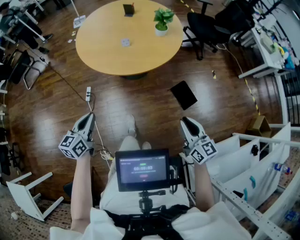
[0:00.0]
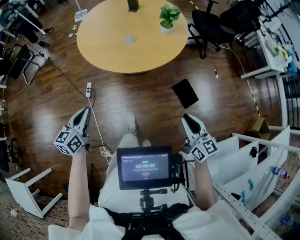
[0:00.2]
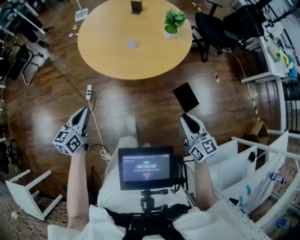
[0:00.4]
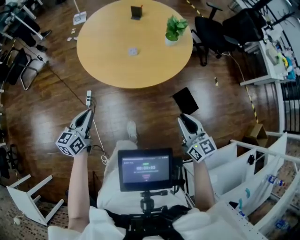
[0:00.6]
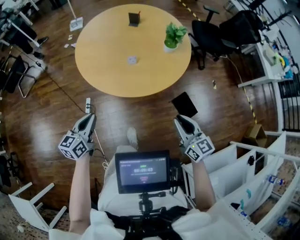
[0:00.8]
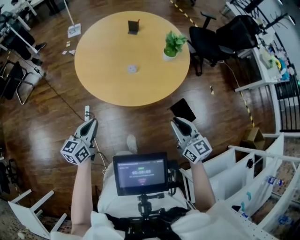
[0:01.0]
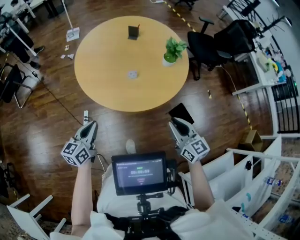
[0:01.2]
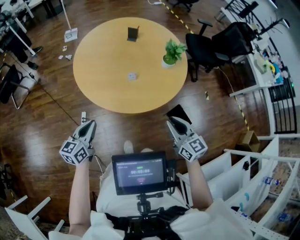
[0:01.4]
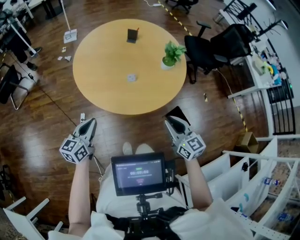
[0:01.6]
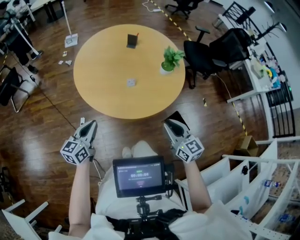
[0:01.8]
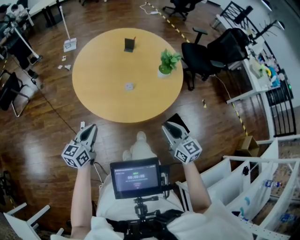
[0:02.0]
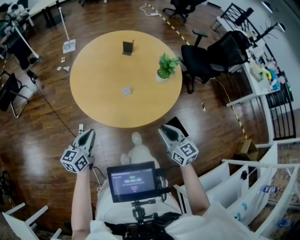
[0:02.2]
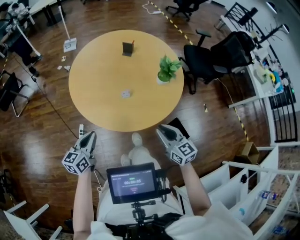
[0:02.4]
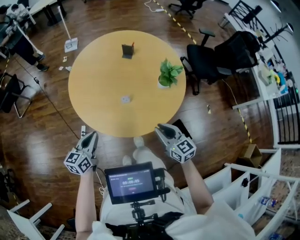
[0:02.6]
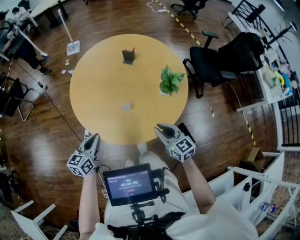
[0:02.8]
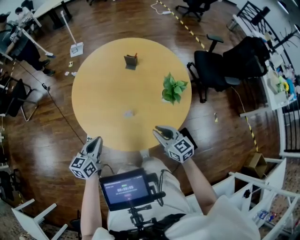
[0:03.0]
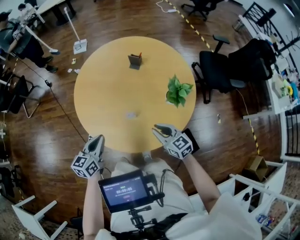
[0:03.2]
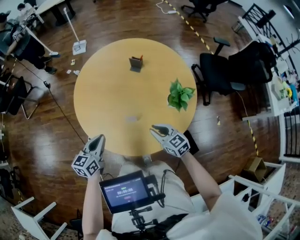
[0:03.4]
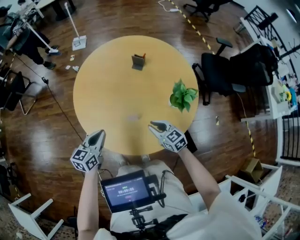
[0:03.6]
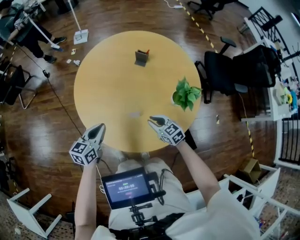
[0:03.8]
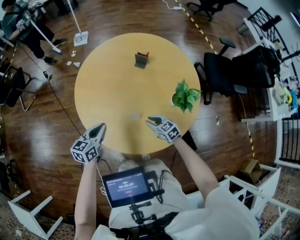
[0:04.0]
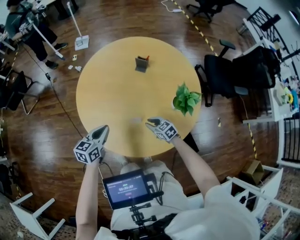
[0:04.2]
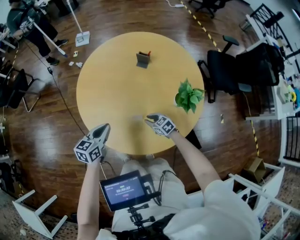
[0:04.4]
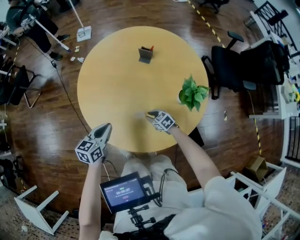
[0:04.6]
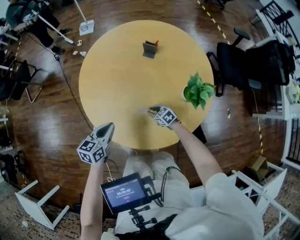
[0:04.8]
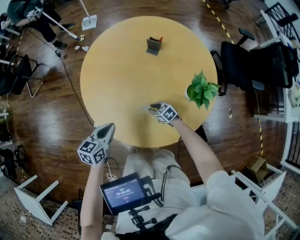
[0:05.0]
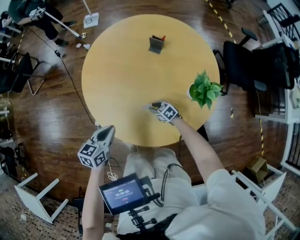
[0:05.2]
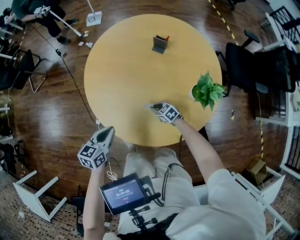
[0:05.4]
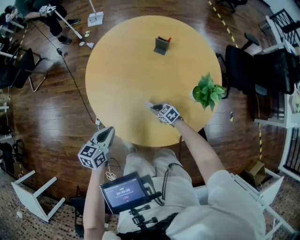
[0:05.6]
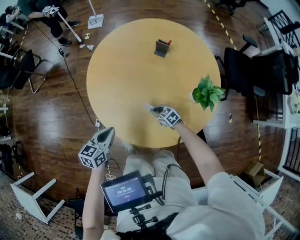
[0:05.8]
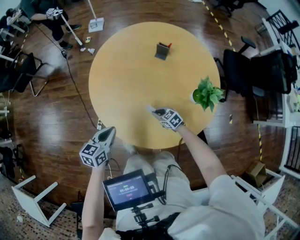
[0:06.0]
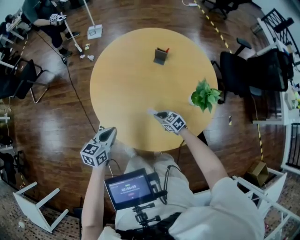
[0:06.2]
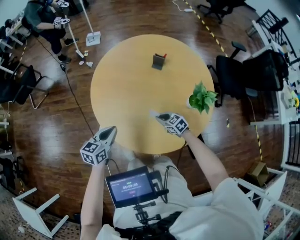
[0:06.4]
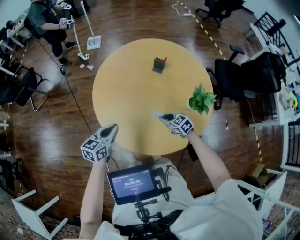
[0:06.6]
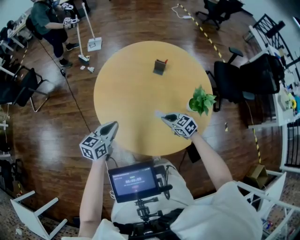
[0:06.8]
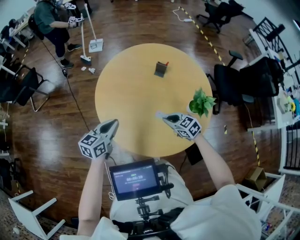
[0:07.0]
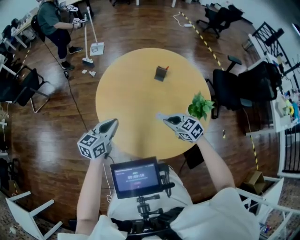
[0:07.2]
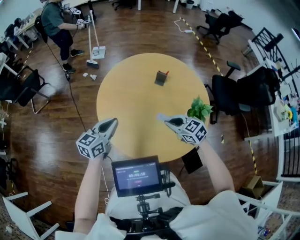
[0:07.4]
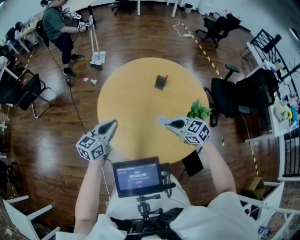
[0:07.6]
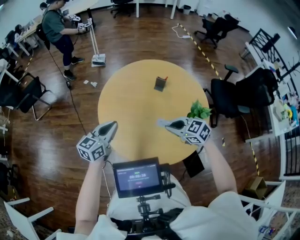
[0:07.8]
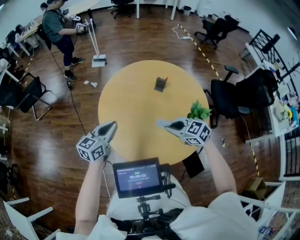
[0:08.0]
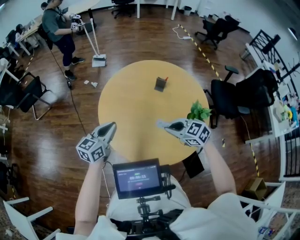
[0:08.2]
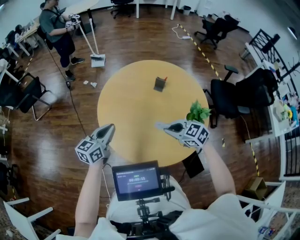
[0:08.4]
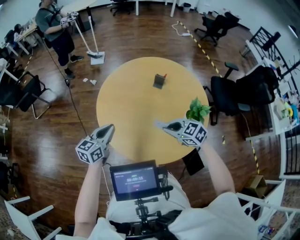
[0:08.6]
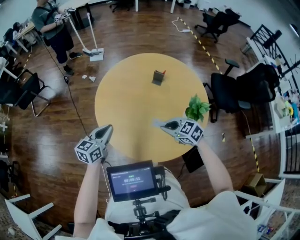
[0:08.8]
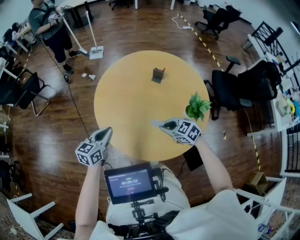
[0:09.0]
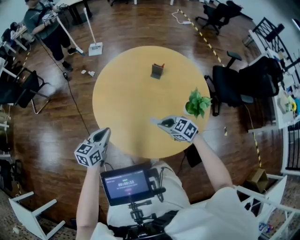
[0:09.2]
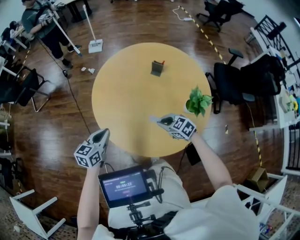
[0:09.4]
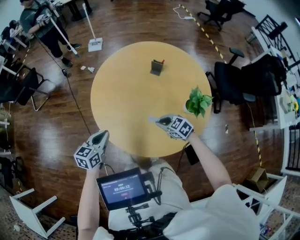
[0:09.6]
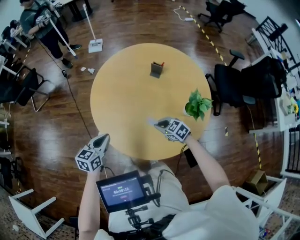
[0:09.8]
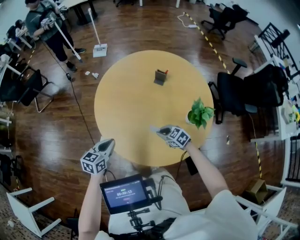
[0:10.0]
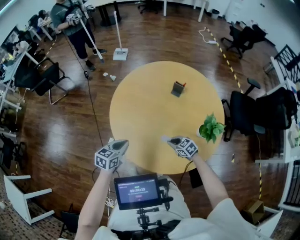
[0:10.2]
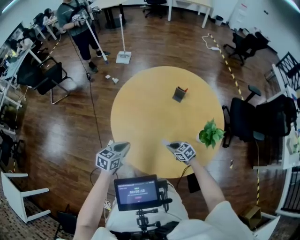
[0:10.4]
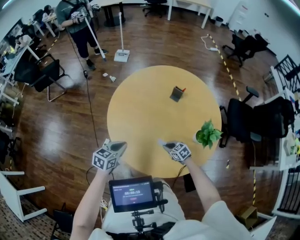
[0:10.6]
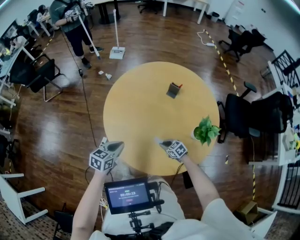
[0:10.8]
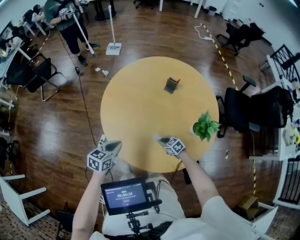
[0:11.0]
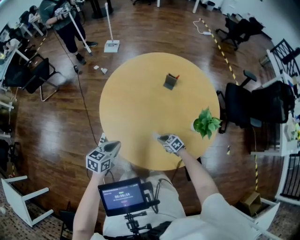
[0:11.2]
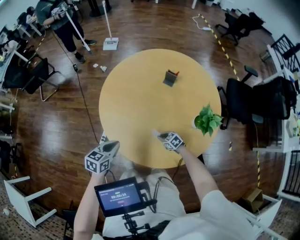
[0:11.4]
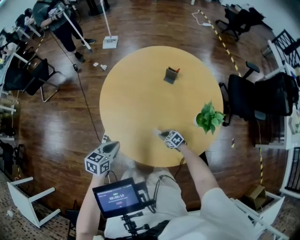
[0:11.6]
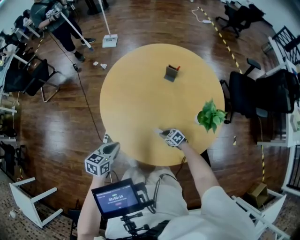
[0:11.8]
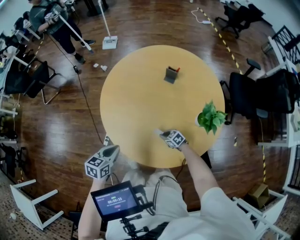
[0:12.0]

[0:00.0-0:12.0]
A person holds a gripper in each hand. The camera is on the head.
0:00.0 to 0:01.6: The left gripper goes approximately 25 cm forward. Meanwhile the right gripper is displaced forward and to the left by some 30 cm.
0:01.6 to 0:03.0: The right gripper shifts some 20 cm forward; the left gripper goes roughly 20 cm forward and to the right.
0:03.0 to 0:04.4: The left gripper goes about 10 cm forward. Meanwhile the right gripper goes roughly 25 cm downward and forward, and changes its angle by some 30 degrees.
0:04.4 to 0:06.0: Both grippers travel together to the left, roughly 5 cm.
0:06.0 to 0:07.6: The right gripper heads upward, covering approximately 35 cm, while the left gripper goes about 15 cm upward and forward, and changes its angle by about 20 degrees.
0:07.6 to 0:09.0: The grippers both shift downward by about 5 cm.
0:09.0 to 0:10.4: The left gripper moves downward, roughly 5 cm, while the right gripper goes about 20 cm downward.
0:10.4 to 0:12.0: The right gripper heads downward, covering about 15 cm.

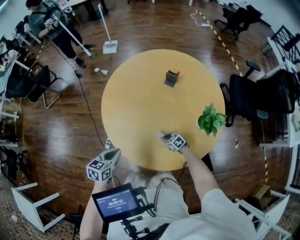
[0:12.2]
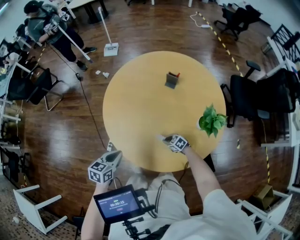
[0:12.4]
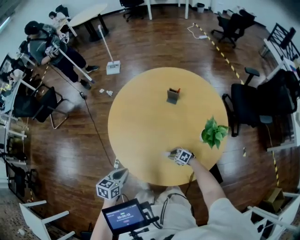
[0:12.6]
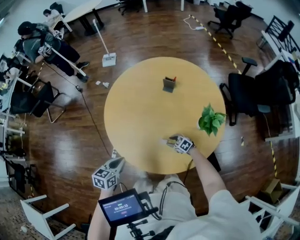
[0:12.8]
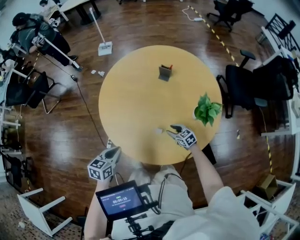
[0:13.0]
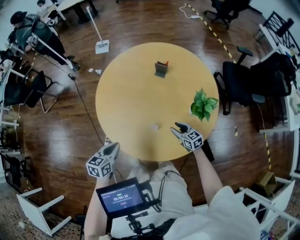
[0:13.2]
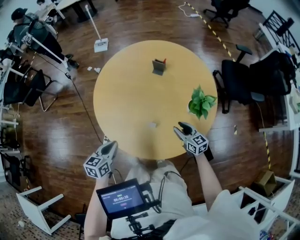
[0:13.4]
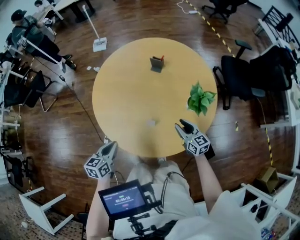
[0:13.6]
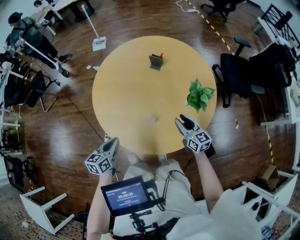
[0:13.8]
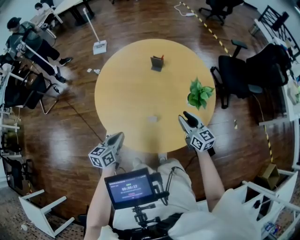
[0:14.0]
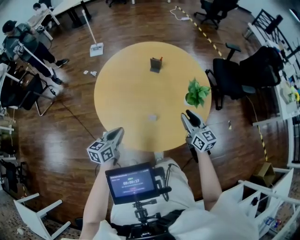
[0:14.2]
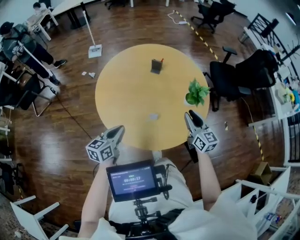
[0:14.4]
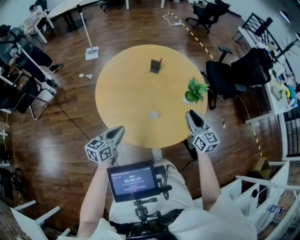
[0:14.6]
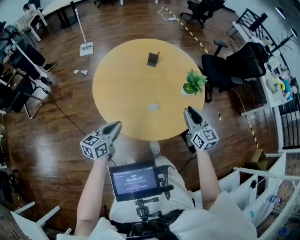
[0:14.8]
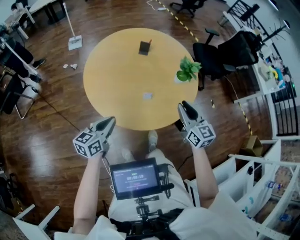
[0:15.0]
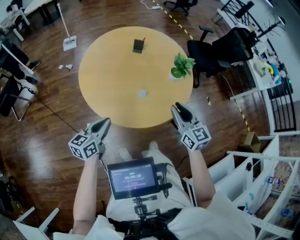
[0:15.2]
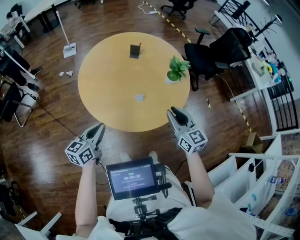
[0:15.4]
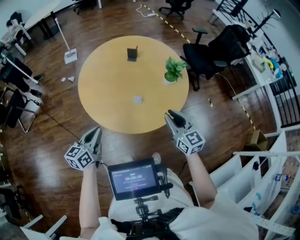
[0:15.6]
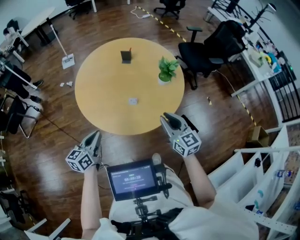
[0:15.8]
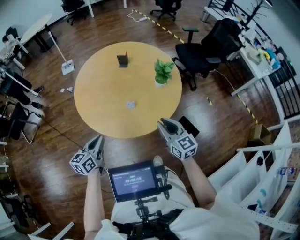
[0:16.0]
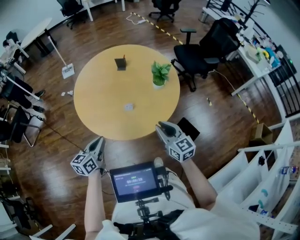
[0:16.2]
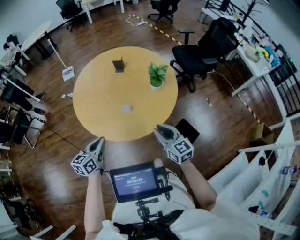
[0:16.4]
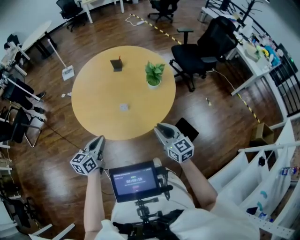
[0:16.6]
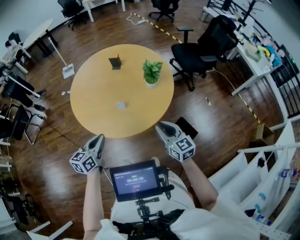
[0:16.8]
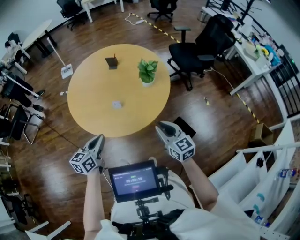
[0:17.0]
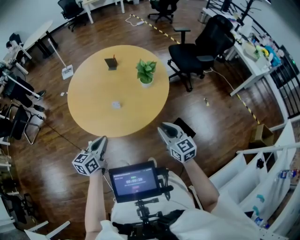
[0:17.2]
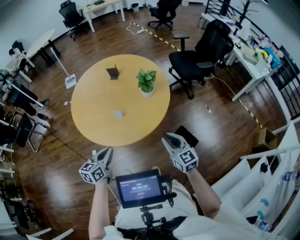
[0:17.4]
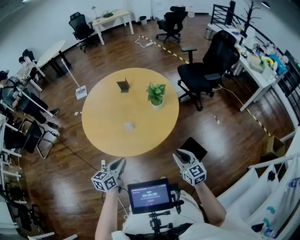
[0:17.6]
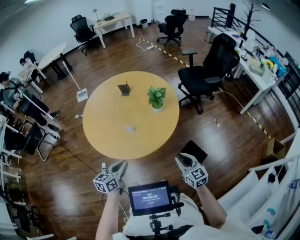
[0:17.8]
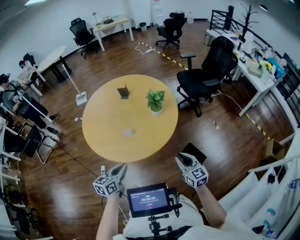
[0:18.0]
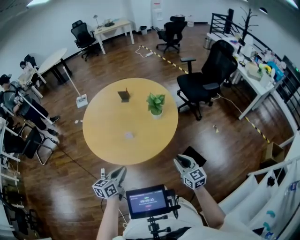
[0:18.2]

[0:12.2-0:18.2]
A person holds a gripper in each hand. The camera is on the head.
0:12.2 to 0:13.8: The left gripper shifts by some 5 cm, while the right gripper goes about 25 cm upward, angles its fingers upward, by roughly 30 degrees, and opens its fingers.
0:13.8 to 0:15.2: The right gripper shifts approximately 25 cm backward, upward and to the left, and changes its angle by some 20 degrees. Meanwhile the left gripper travels backward, upward and to the left by approximately 15 cm, and rotates roughly 30 degrees.
0:15.2 to 0:16.6: The right gripper is displaced to the right and backward by approximately 15 cm. The left gripper heads to the right, covering roughly 15 cm.
0:16.6 to 0:18.2: The grippers both shift to the right and backward by roughly 15 cm.

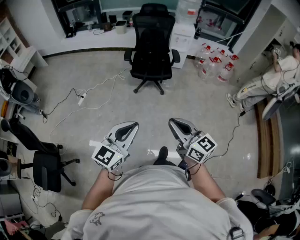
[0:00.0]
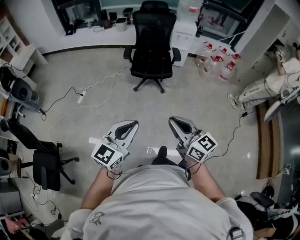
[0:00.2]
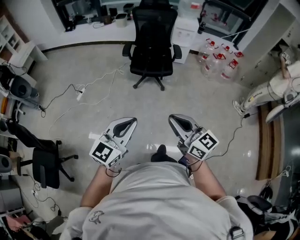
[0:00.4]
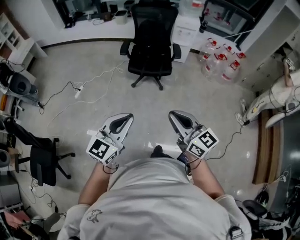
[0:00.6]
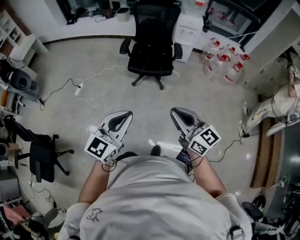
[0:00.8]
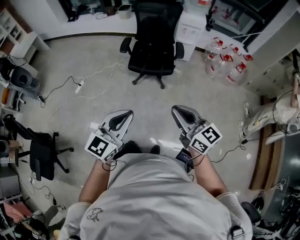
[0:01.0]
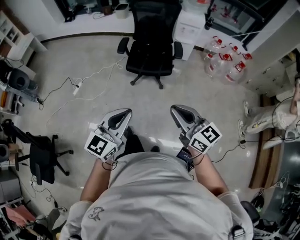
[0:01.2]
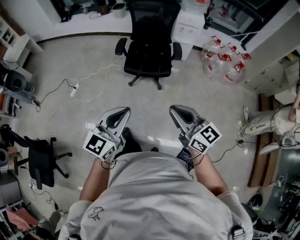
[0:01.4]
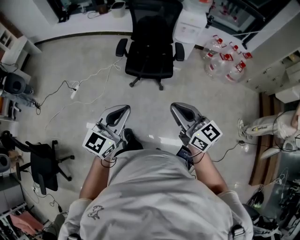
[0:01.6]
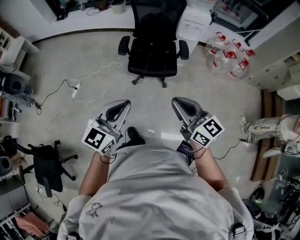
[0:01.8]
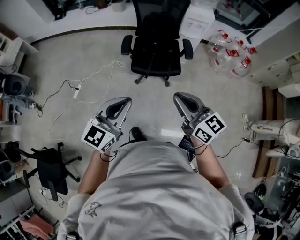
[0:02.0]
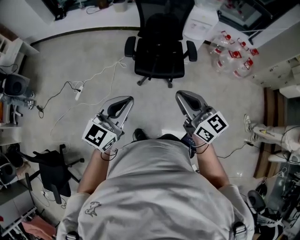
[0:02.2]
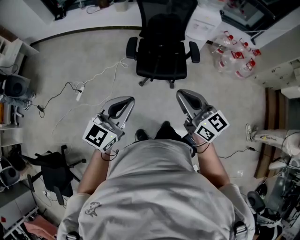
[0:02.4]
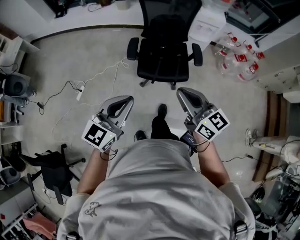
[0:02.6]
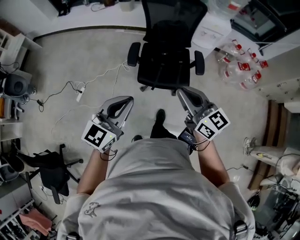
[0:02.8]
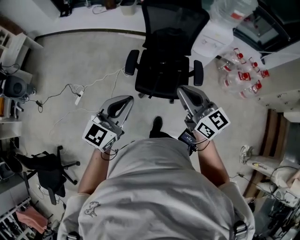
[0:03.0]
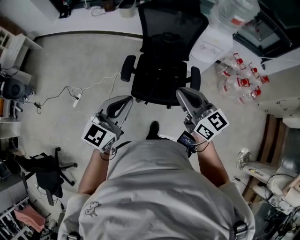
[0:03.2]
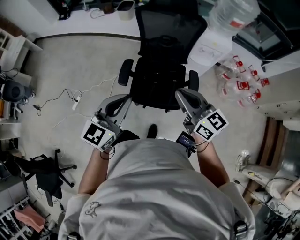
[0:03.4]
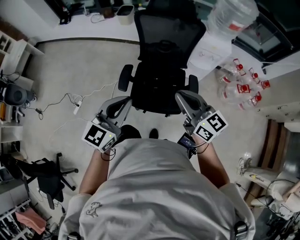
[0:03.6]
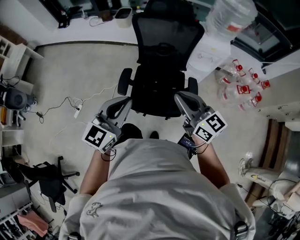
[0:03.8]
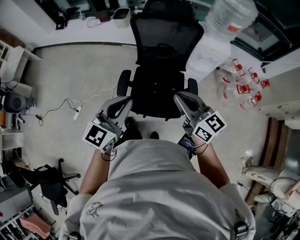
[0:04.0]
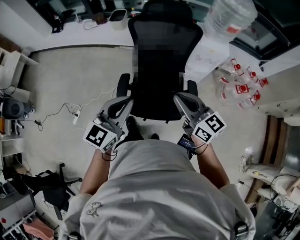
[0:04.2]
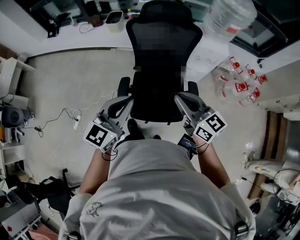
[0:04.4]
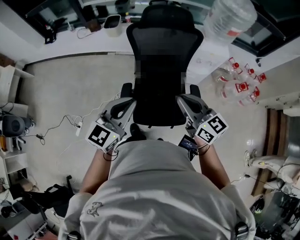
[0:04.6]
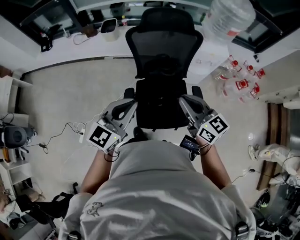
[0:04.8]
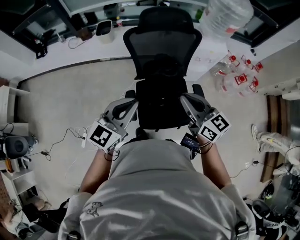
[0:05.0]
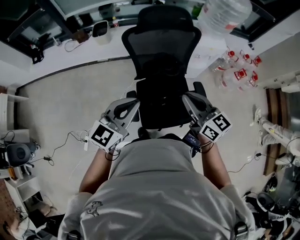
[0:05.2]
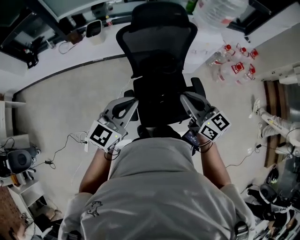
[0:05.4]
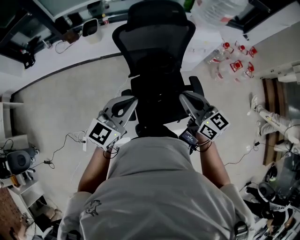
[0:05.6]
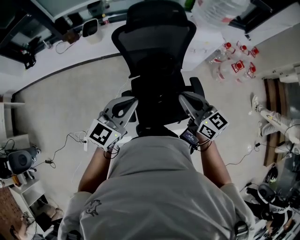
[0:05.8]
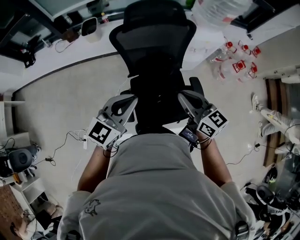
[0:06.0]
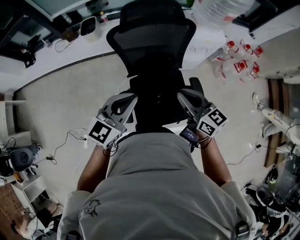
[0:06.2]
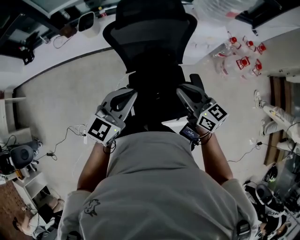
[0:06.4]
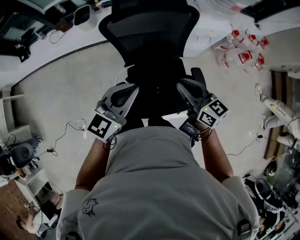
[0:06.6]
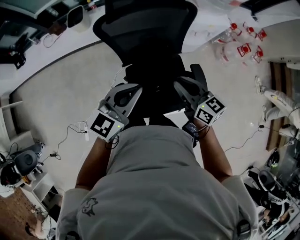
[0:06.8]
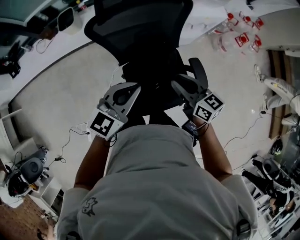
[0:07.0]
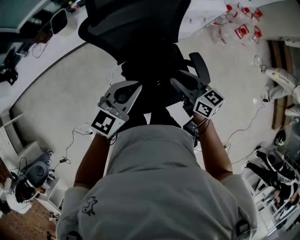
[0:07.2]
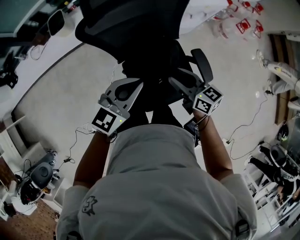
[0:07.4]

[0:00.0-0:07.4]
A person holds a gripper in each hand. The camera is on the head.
0:00.0 to 0:01.4: The right gripper is displaced forward and to the right by about 30 cm, while the left gripper travels forward by some 25 cm.
0:01.4 to 0:03.0: The grippers both shift forward by roughly 40 cm.
0:03.0 to 0:04.4: Both grippers move forward, roughly 20 cm.
0:04.4 to 0:06.0: Both grippers move forward, about 15 cm.
0:06.0 to 0:07.4: Both grippers move downward and forward, about 20 cm. The right gripper changes its angle by approximately 20 degrees, and opens its fingers, while the left gripper rotates some 20 degrees.
